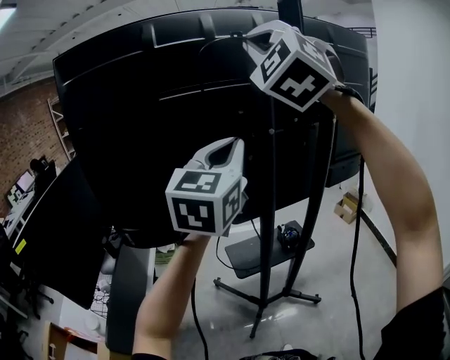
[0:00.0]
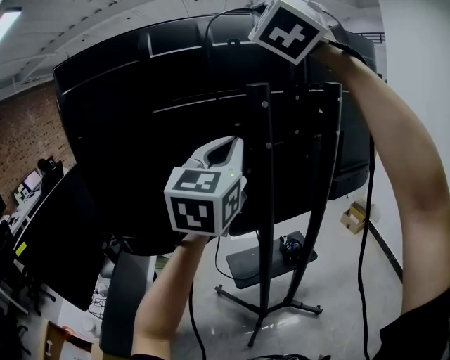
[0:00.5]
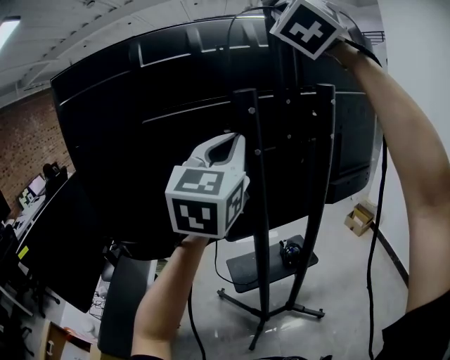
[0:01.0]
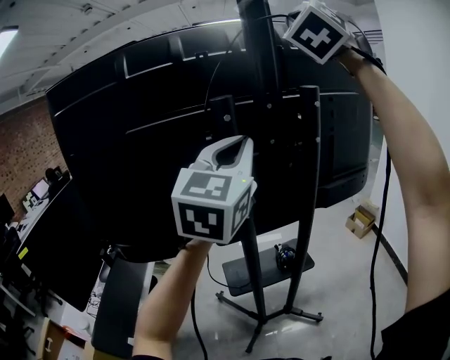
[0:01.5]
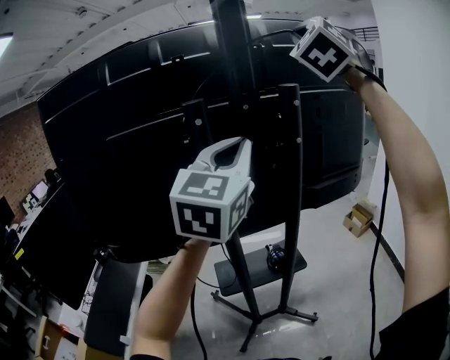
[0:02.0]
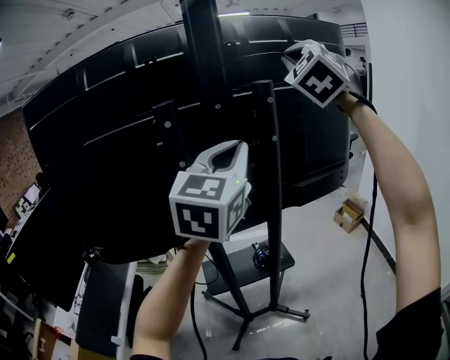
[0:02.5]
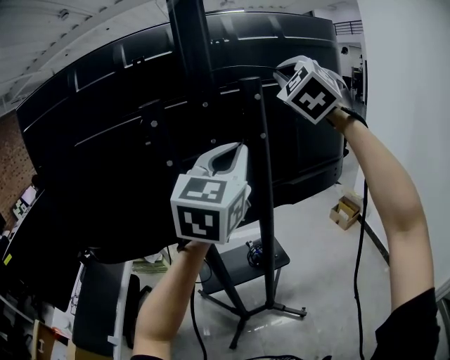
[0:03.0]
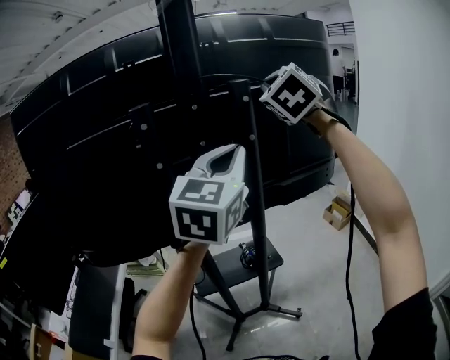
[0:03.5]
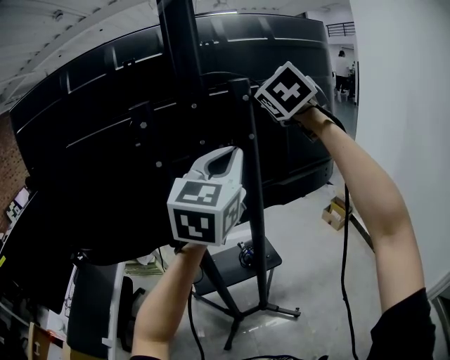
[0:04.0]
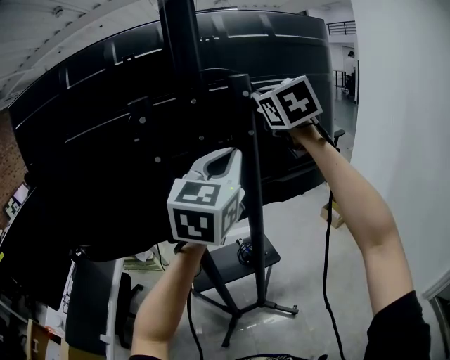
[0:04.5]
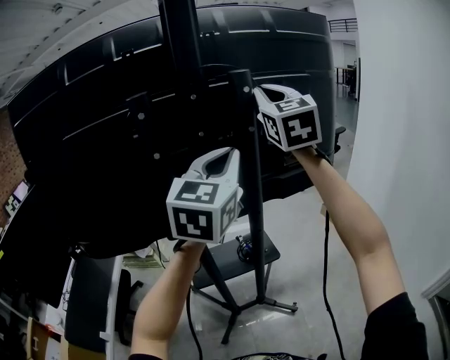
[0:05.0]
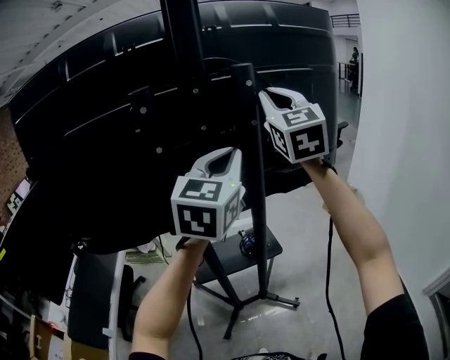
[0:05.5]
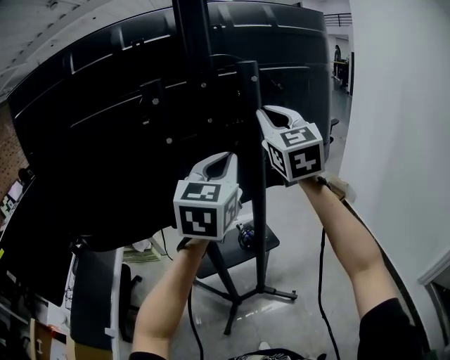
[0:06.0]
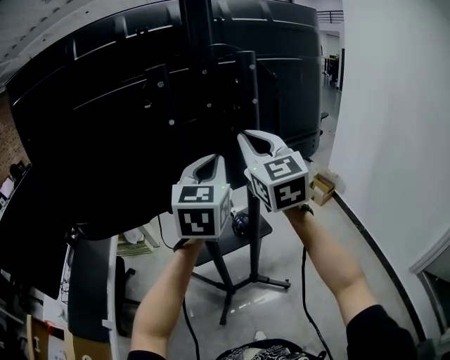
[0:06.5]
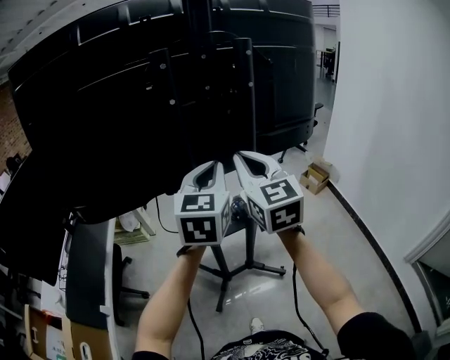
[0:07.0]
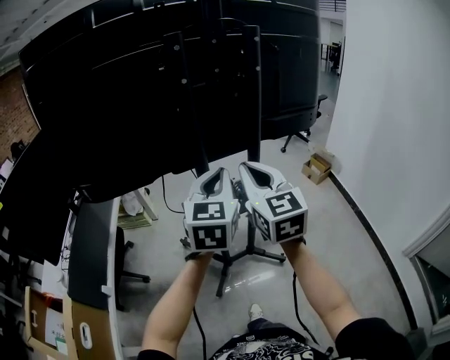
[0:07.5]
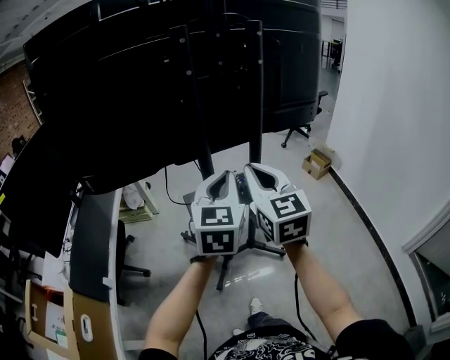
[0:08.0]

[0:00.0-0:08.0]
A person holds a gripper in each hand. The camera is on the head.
0:00.0 to 0:02.0: The right gripper goes roughly 30 cm to the right and forward, while the left gripper heads to the right and forward, covering approximately 15 cm.
0:02.0 to 0:04.0: The right gripper moves downward, approximately 15 cm, and changes its angle by some 30 degrees. Meanwhile the left gripper is displaced to the right by approximately 10 cm.
0:04.0 to 0:06.0: The right gripper shifts approximately 10 cm downward and backward, and rotates about 30 degrees. The left gripper shifts approximately 5 cm downward.
0:06.0 to 0:08.0: Both grippers travel together backward and downward, roughly 25 cm.

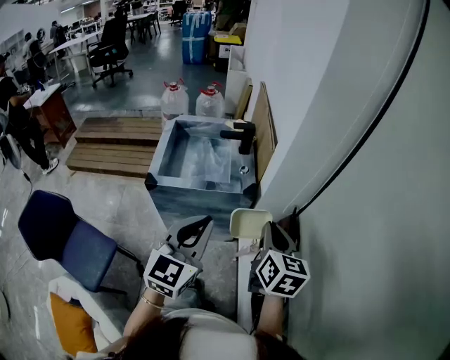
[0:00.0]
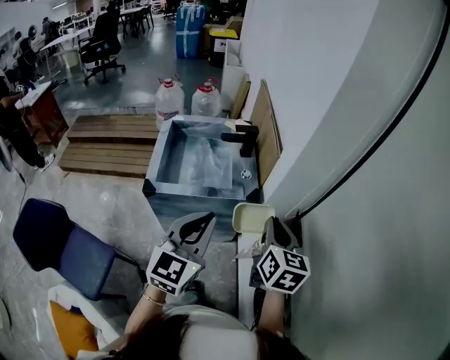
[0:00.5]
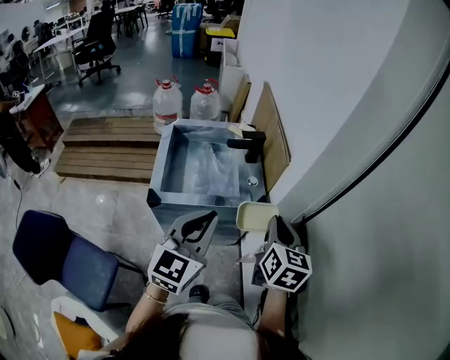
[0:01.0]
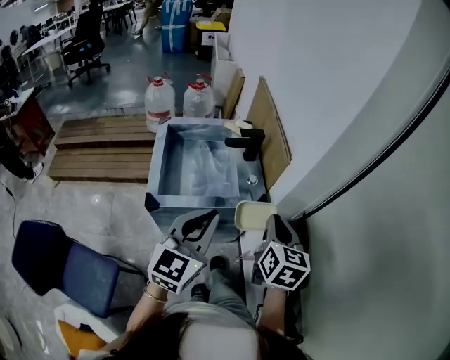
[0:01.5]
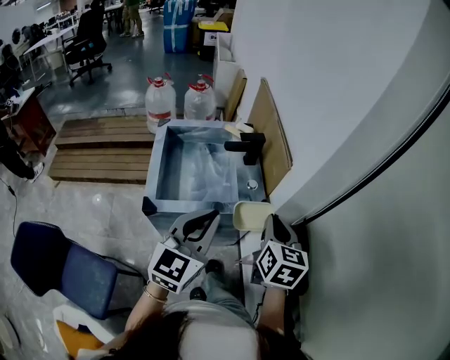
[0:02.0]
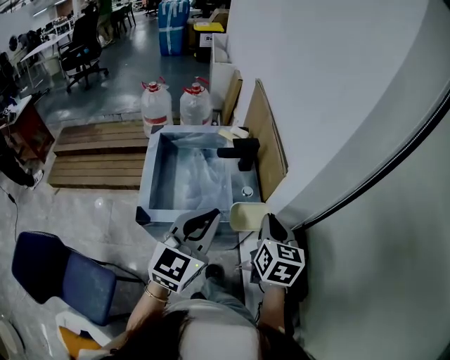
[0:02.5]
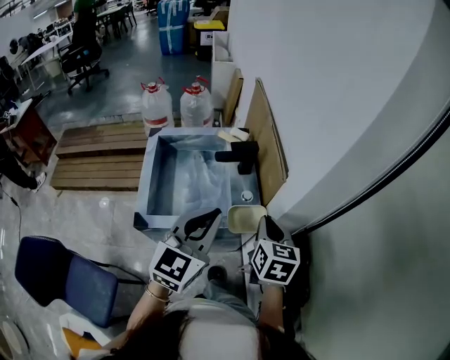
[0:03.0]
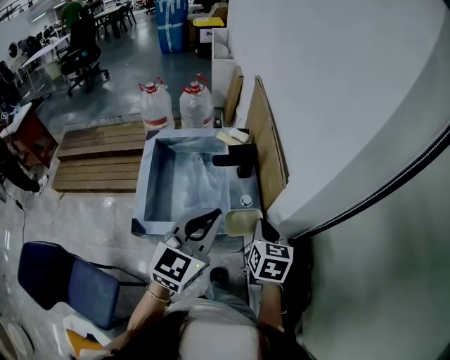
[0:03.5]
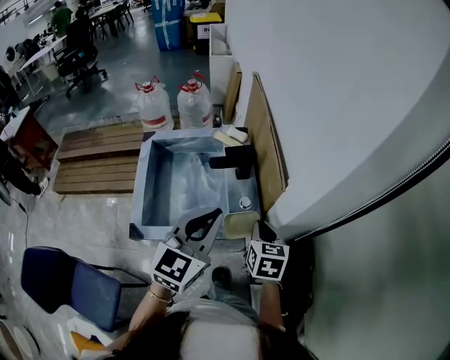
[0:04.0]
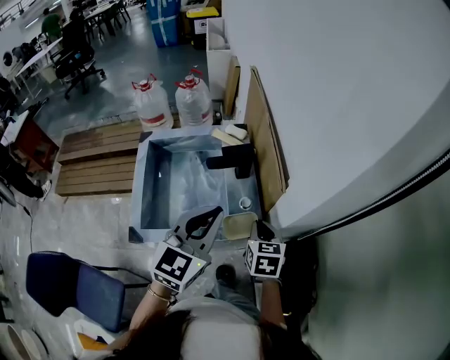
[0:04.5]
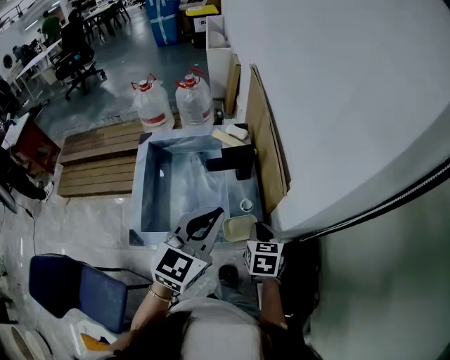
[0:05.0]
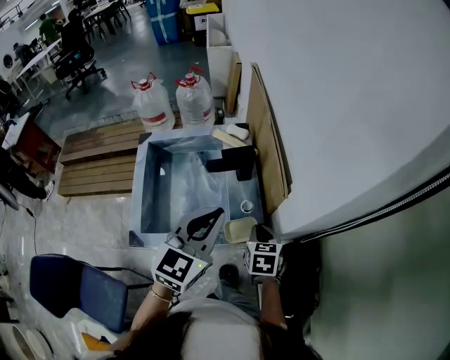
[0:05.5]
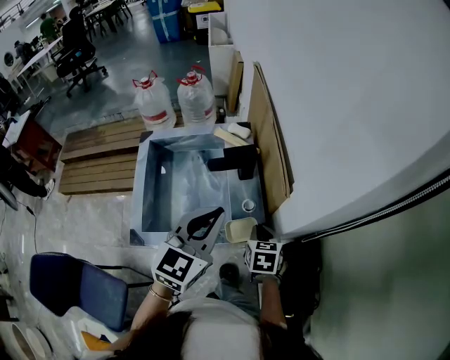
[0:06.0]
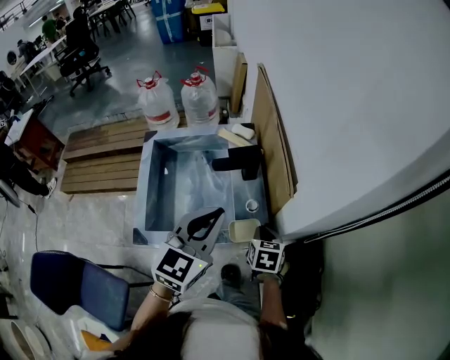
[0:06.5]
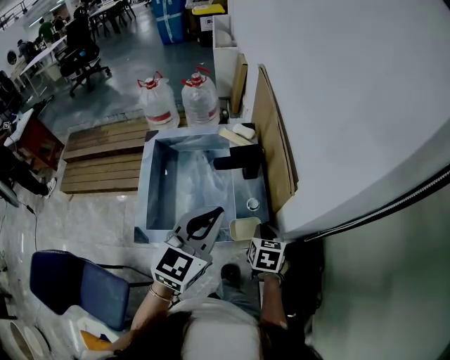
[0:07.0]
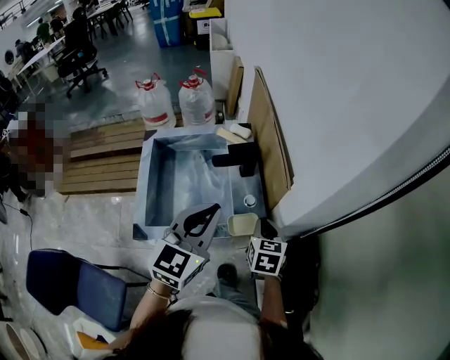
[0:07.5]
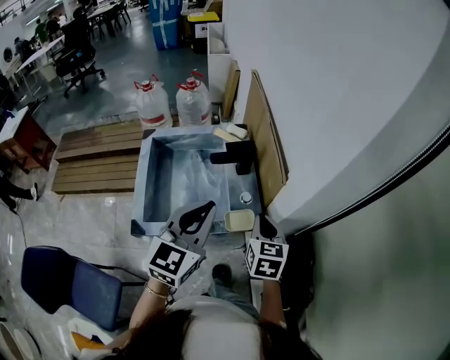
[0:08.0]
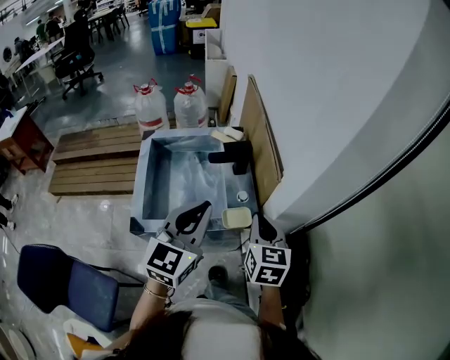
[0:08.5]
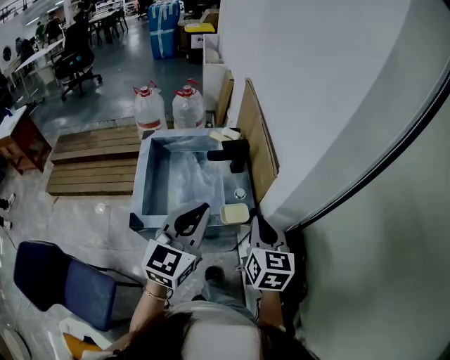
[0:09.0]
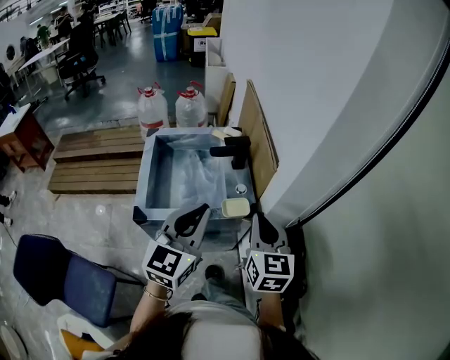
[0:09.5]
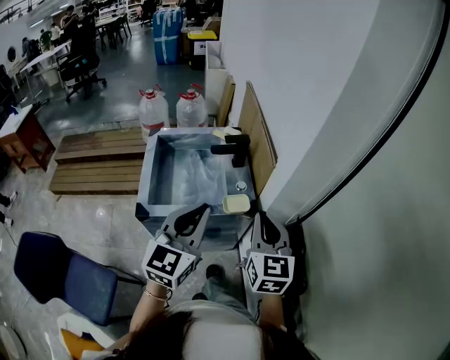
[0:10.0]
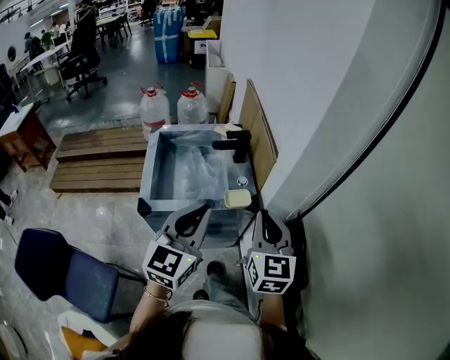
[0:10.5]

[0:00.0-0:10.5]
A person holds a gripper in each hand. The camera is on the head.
0:00.0 to 0:02.0: Both grippers travel together forward and to the left, about 15 cm.
0:02.0 to 0:04.0: The right gripper goes about 15 cm forward and downward. The left gripper moves forward, about 15 cm.
0:04.0 to 0:06.5: The right gripper shifts roughly 10 cm downward.
0:06.5 to 0:08.5: The right gripper is displaced upward by approximately 20 cm, and turns by approximately 20 degrees. Meanwhile the left gripper moves backward, about 5 cm.
0:08.5 to 0:10.5: The right gripper shifts approximately 15 cm backward and upward. Meanwhile the left gripper moves backward, about 10 cm.

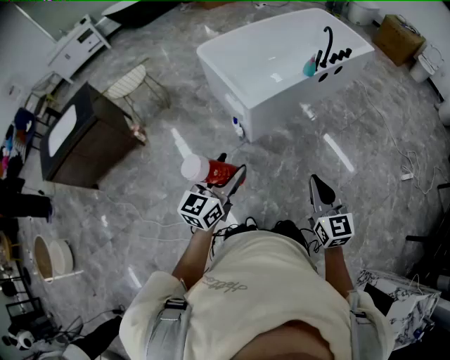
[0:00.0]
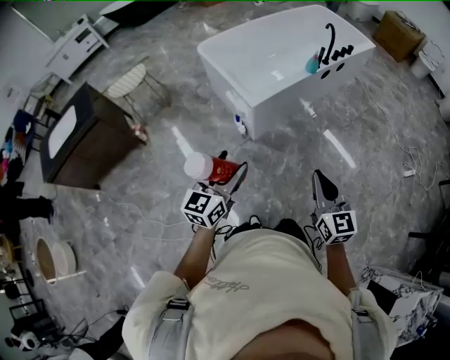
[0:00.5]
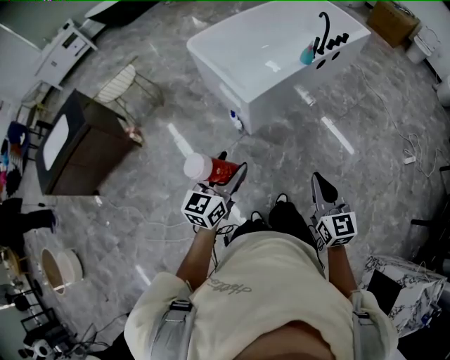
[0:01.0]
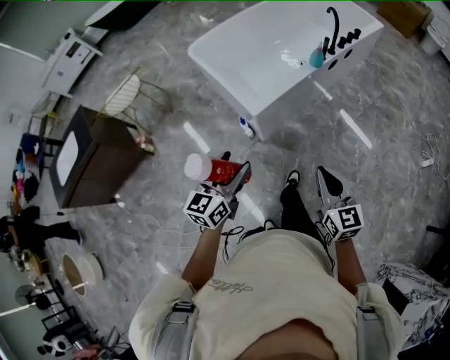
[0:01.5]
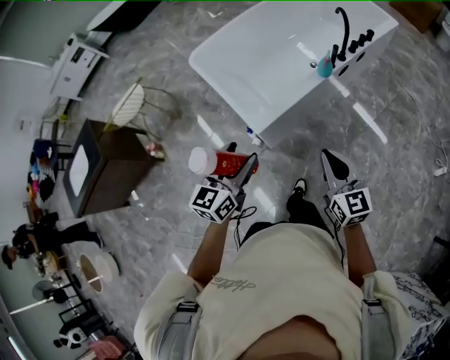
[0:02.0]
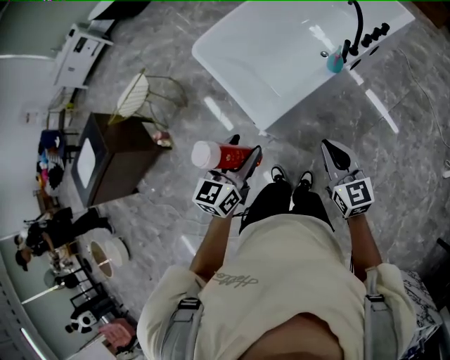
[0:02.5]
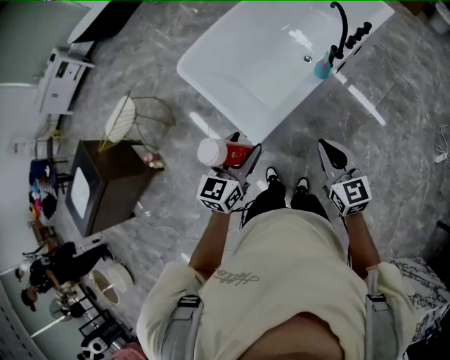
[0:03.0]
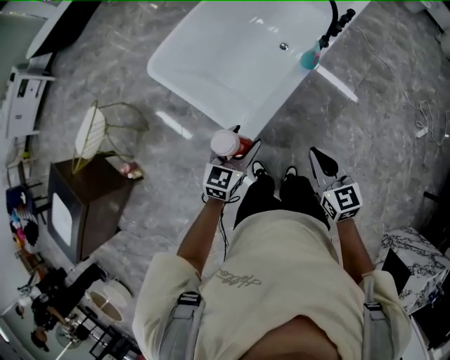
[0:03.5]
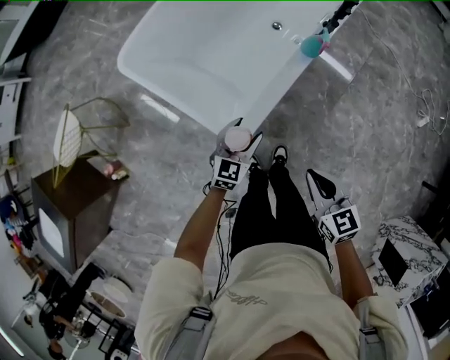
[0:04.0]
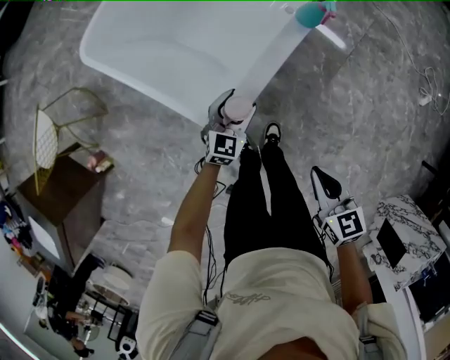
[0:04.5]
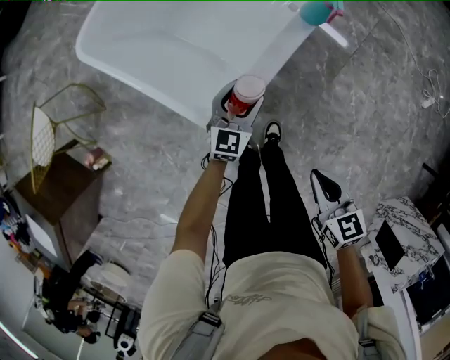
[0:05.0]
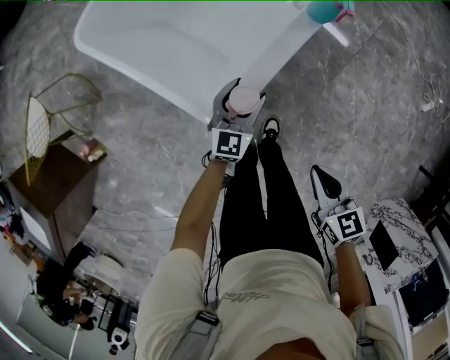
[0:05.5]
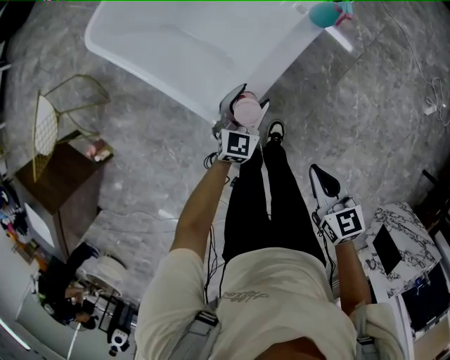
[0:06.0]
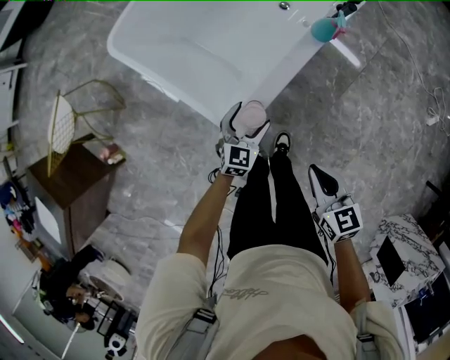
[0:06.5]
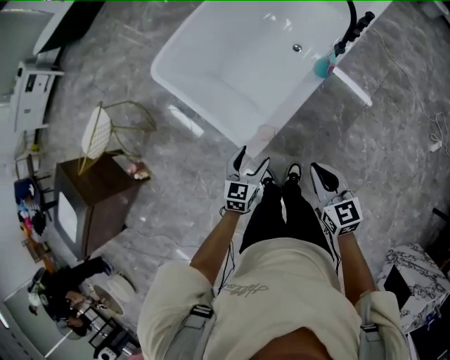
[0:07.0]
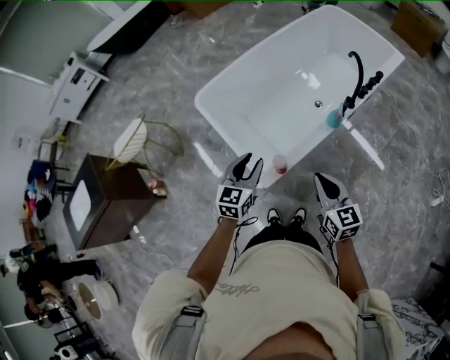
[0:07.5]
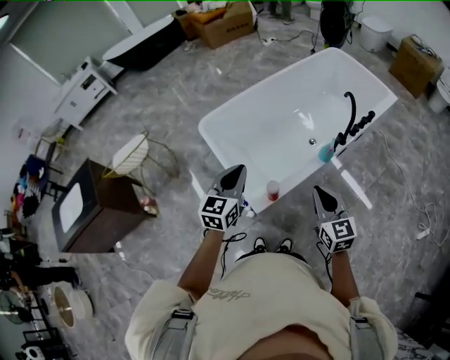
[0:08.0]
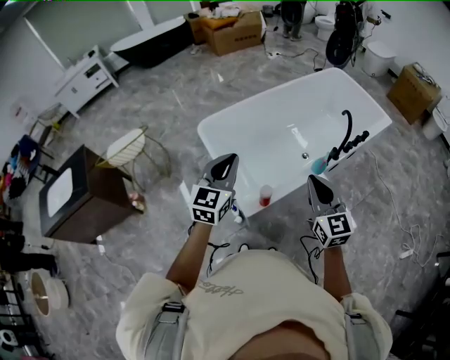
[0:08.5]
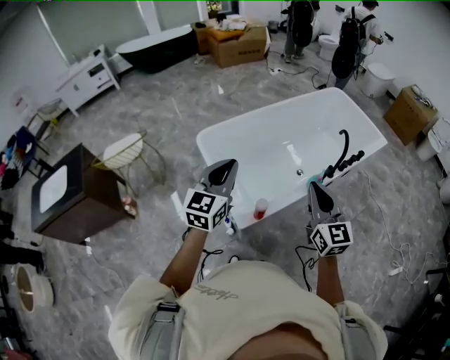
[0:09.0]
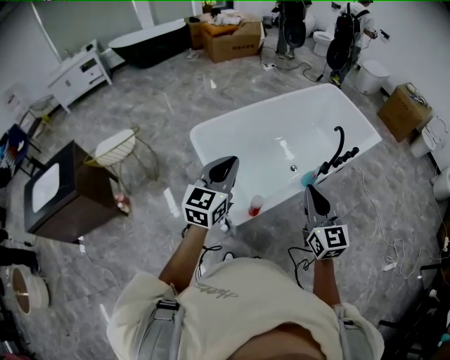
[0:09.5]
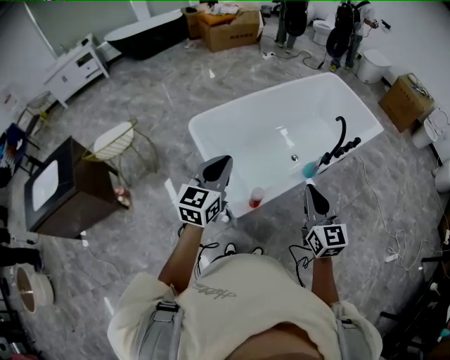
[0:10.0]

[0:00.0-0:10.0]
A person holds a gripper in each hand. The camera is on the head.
0:00.0 to 0:02.0: Both grippers travel together forward, about 30 cm.
0:02.0 to 0:04.0: The left gripper moves downward and forward, some 35 cm, and changes its angle by some 30 degrees. The right gripper shifts roughly 15 cm downward, to the left and forward, and turns by approximately 20 degrees.
0:04.0 to 0:06.0: Both grippers travel together downward, about 10 cm.
0:06.0 to 0:08.0: The right gripper shifts some 25 cm upward and forward, and turns by approximately 30 degrees, while the left gripper moves upward, about 40 cm, turns by roughly 30 degrees, and closes.
0:08.0 to 0:10.0: Both grippers move upward, approximately 10 cm.
